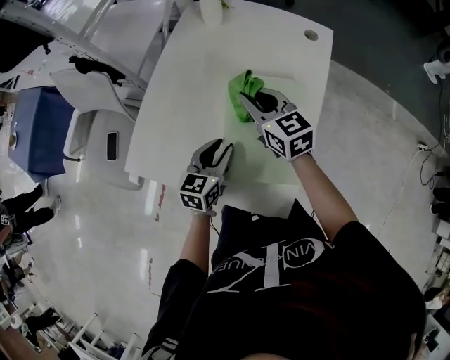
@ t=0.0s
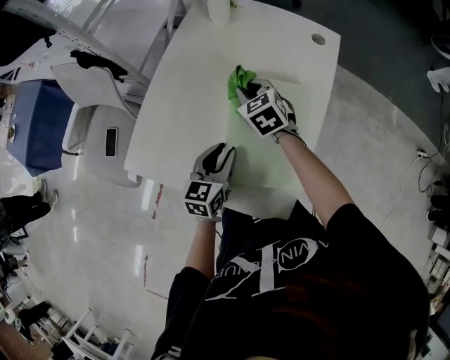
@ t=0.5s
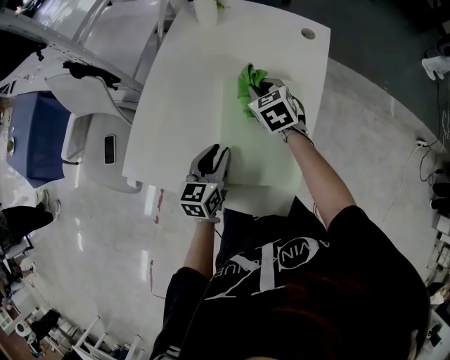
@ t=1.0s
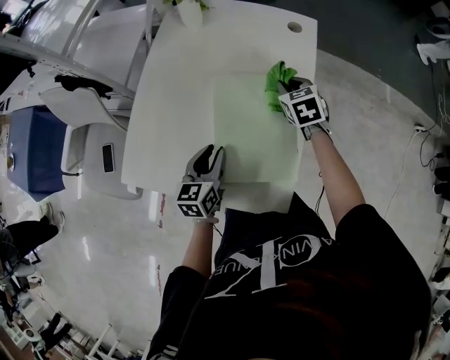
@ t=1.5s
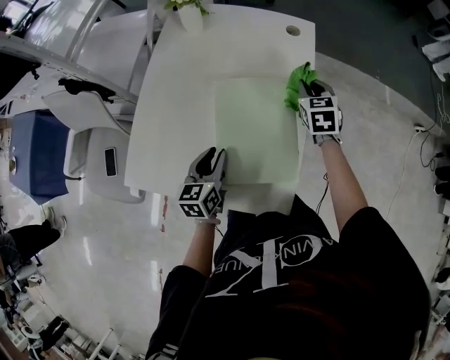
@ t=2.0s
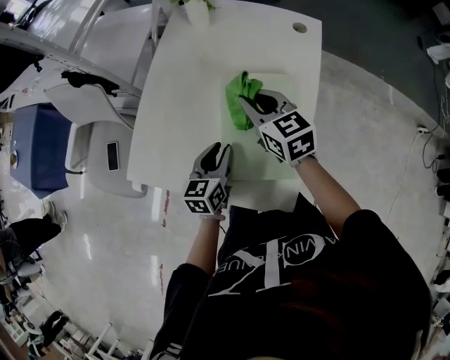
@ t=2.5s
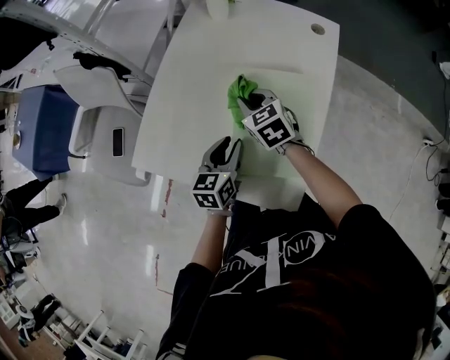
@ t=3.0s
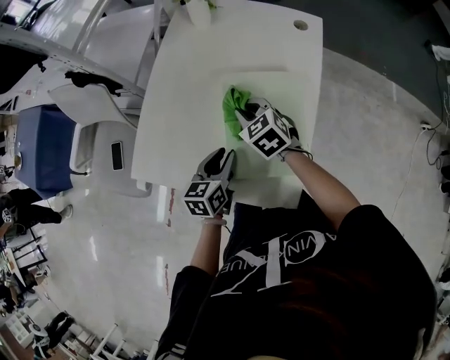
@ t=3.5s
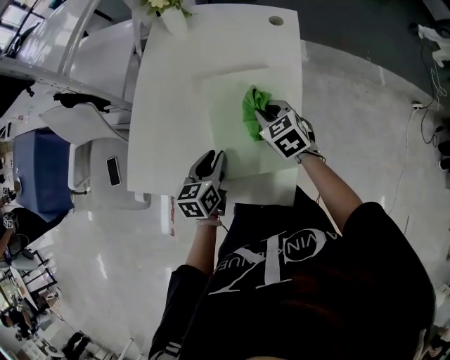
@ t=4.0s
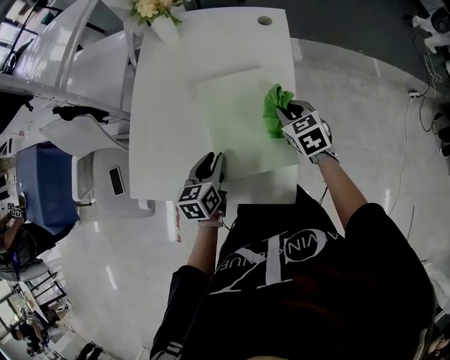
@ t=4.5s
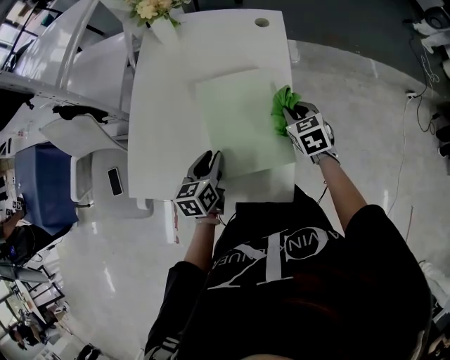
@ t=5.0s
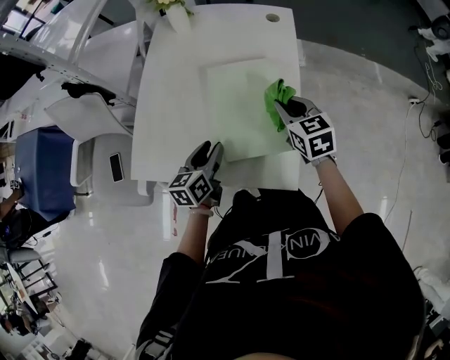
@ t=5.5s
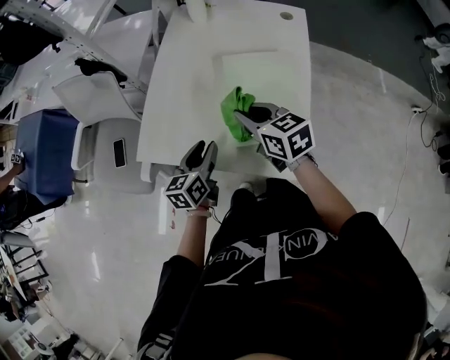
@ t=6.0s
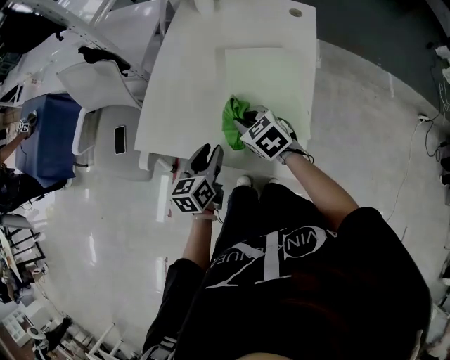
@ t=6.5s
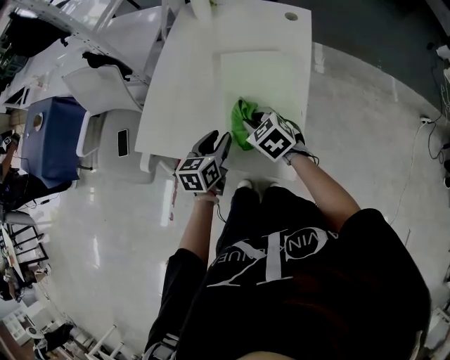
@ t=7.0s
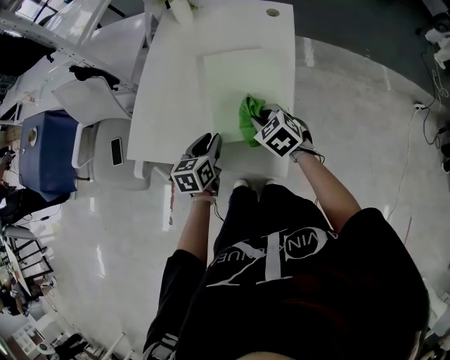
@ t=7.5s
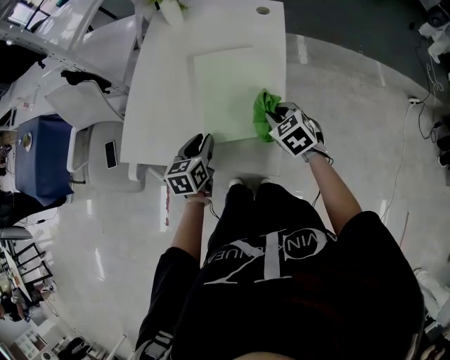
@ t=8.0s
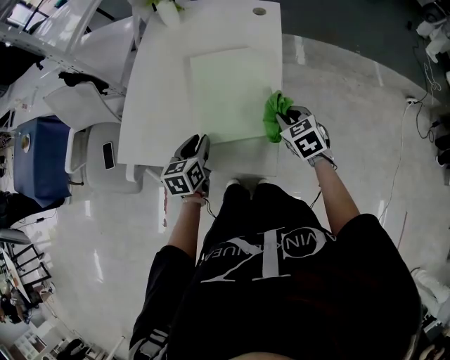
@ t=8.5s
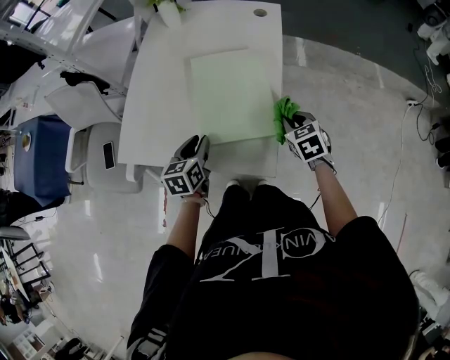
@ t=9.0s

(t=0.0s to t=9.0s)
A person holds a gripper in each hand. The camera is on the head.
t=0.0s - t=2.0s: The right gripper travels to the right by about 20 cm, and changes its angle by some 40 degrees.
t=2.0s - t=4.5s: The right gripper is displaced backward by about 10 cm, and moves approximately 25 cm to the left and comes back.
t=4.5s - t=7.0s: The left gripper moves backward, about 5 cm, while the right gripper heads to the left and backward, covering approximately 20 cm, and changes its angle by about 30 degrees.
t=7.0s - t=9.0s: The right gripper is displaced to the right by some 20 cm, and turns by roughly 30 degrees.

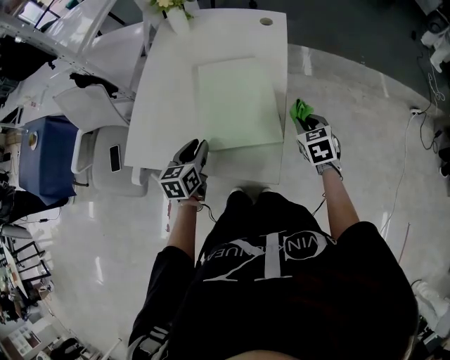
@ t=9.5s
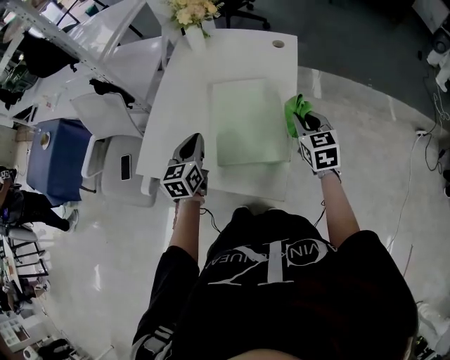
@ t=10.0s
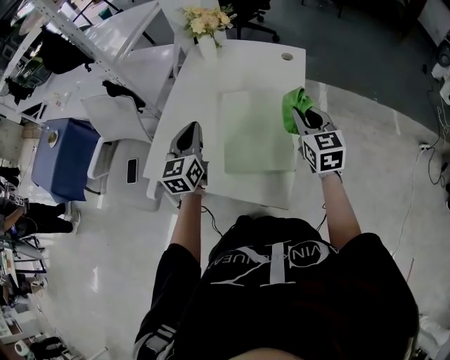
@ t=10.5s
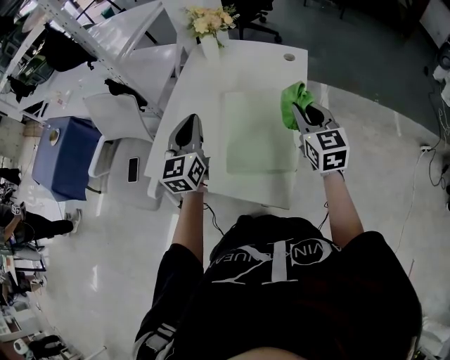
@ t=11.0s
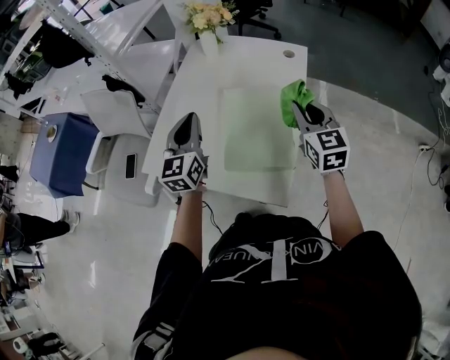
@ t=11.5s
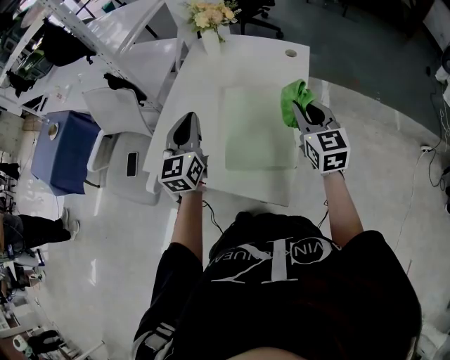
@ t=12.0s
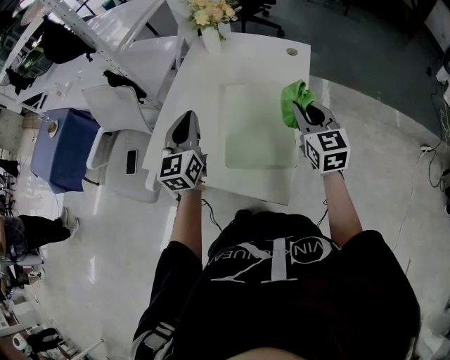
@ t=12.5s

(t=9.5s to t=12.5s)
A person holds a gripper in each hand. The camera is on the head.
t=9.5s - t=11.0s: The left gripper moves upward and forward, approximately 20 cm, swivels some 40 degrees, and closes; the right gripper heads upward and to the left, covering approximately 20 cm, and angles its fingers upward, by approximately 30 degrees.
t=11.0s - t=12.5s: Neither gripper changes place.

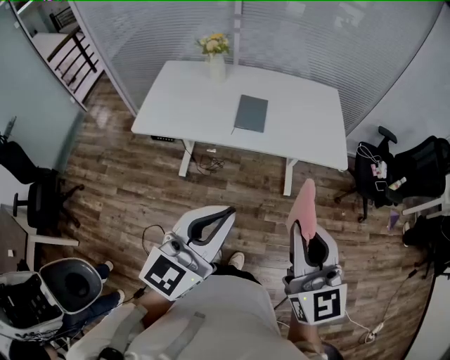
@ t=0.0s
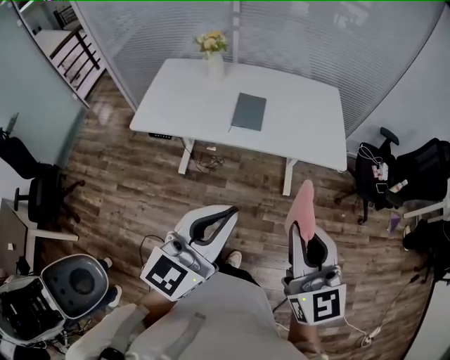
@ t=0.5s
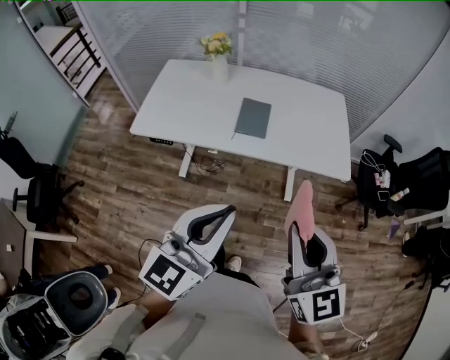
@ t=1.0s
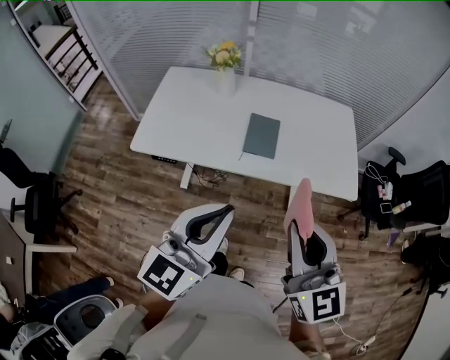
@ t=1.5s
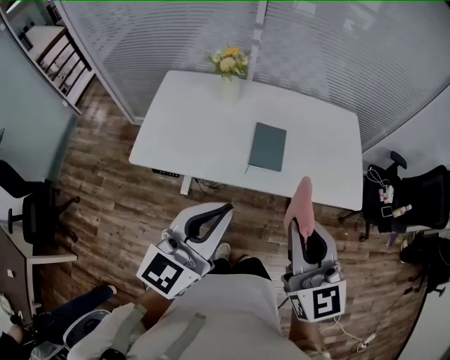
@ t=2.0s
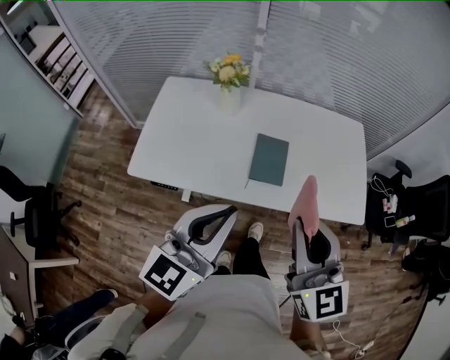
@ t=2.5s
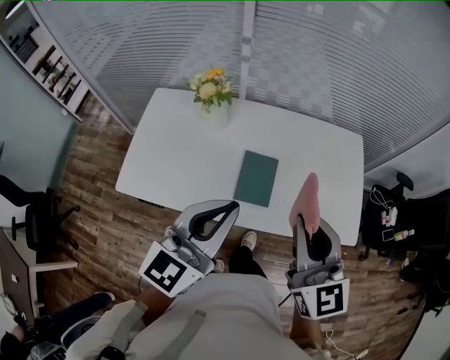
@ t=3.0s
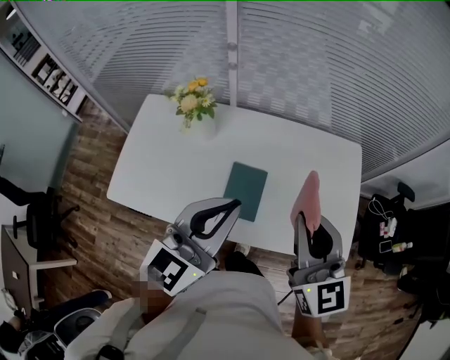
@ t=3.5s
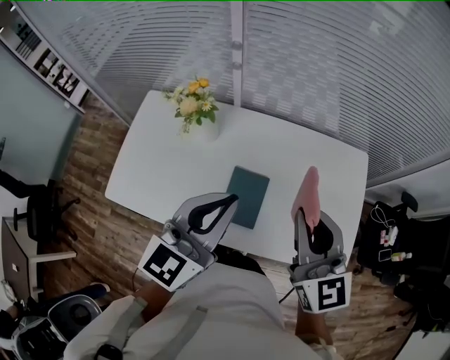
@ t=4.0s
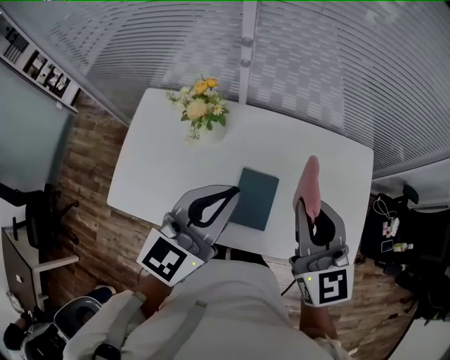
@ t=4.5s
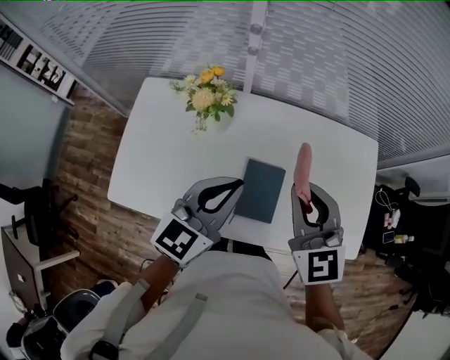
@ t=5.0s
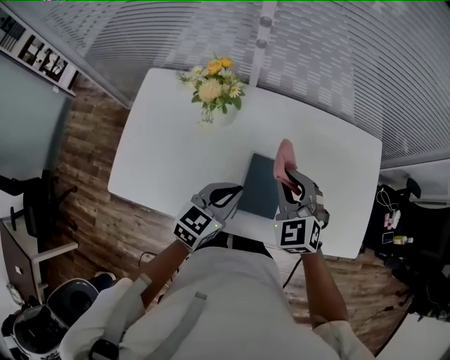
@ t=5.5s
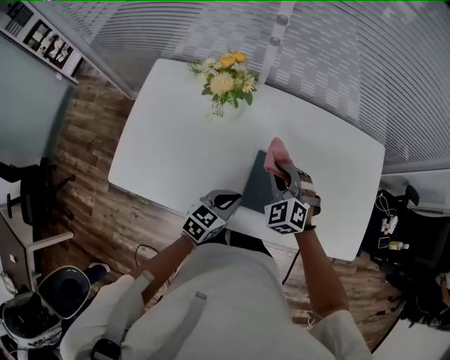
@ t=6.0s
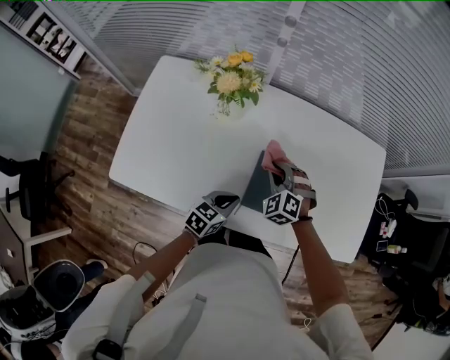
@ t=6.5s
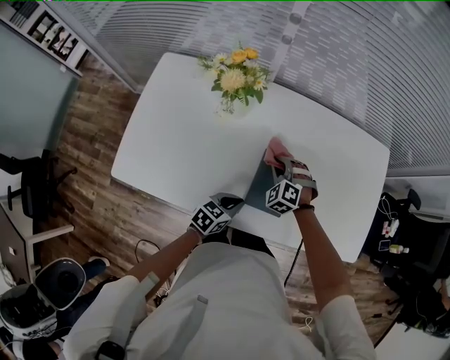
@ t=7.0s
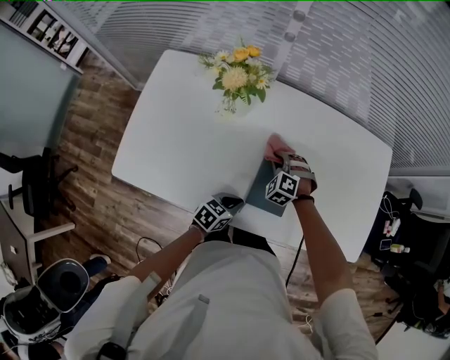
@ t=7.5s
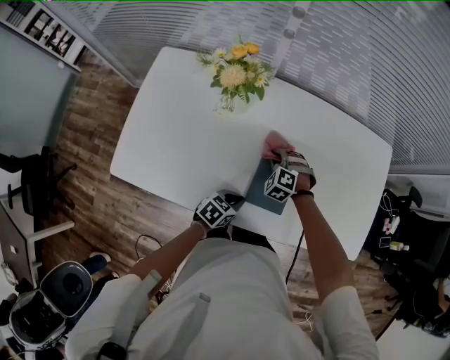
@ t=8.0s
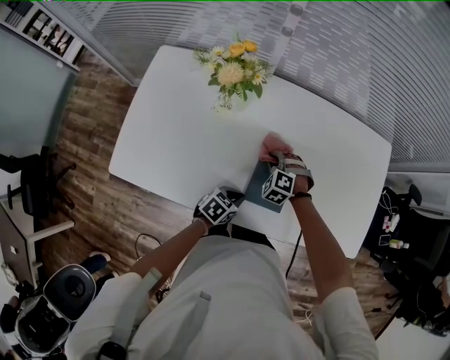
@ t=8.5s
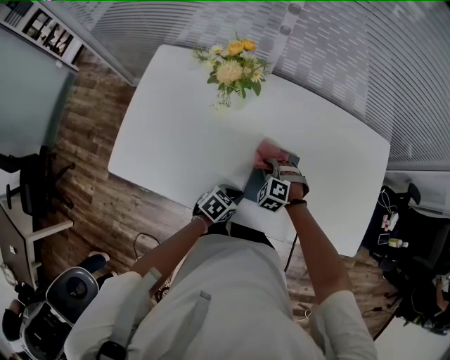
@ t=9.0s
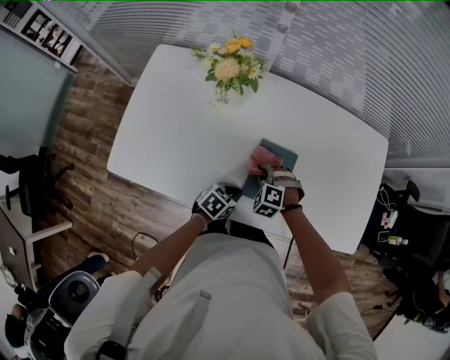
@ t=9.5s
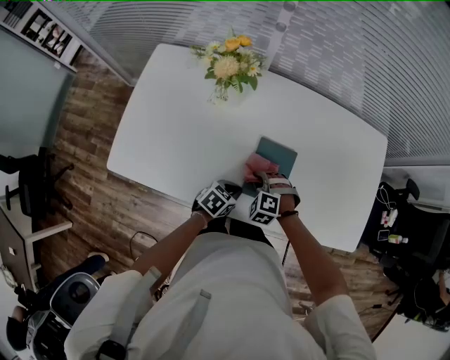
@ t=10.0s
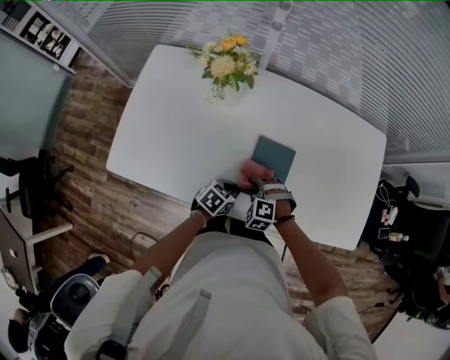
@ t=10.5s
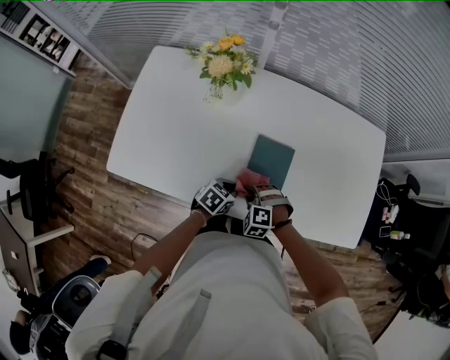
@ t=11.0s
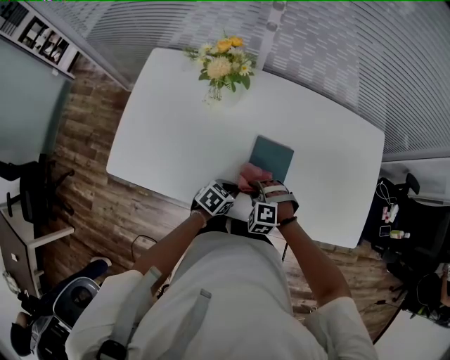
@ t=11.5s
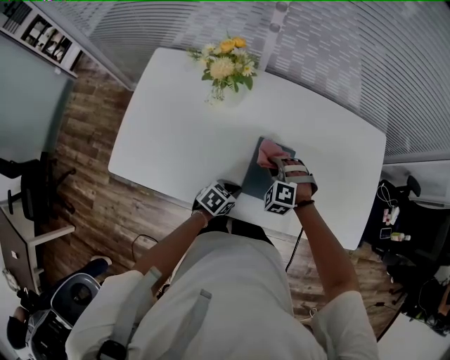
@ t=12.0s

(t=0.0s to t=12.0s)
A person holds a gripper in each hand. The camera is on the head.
t=0.0s - t=2.0s: Both grippers travel together forward and to the left, approximately 25 cm.
t=2.0s - t=4.0s: Both grippers travel together forward, approximately 35 cm.
t=4.0s - t=6.0s: The left gripper moves downward, some 35 cm, and changes its angle by some 40 degrees; the right gripper shifts about 30 cm downward and to the left, and tilts its fingers some 30 degrees downward.
t=6.0s - t=8.0s: The right gripper is displaced downward by roughly 15 cm, and swivels approximately 20 degrees, while the left gripper is displaced downward by roughly 10 cm.
t=8.0s - t=10.0s: The right gripper heads backward, covering approximately 10 cm.
t=10.0s - t=12.0s: The right gripper moves forward and upward, some 10 cm.

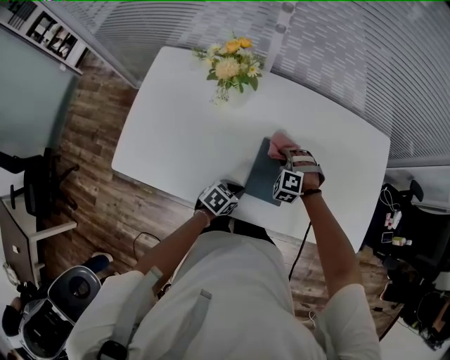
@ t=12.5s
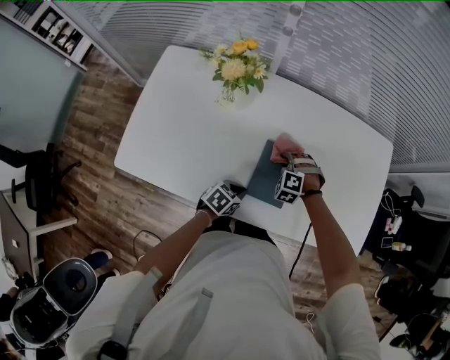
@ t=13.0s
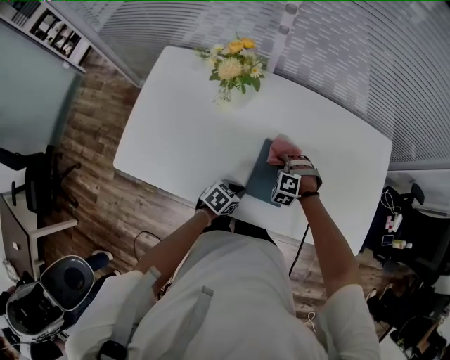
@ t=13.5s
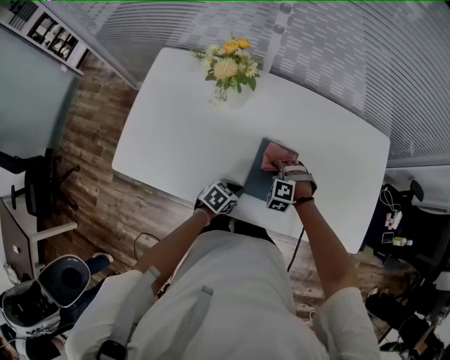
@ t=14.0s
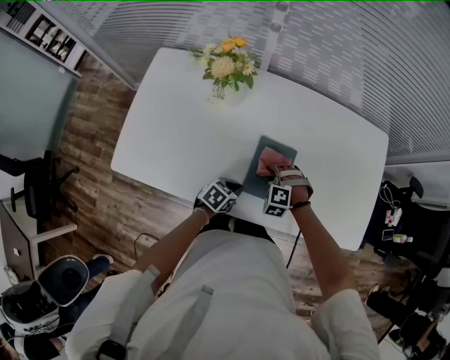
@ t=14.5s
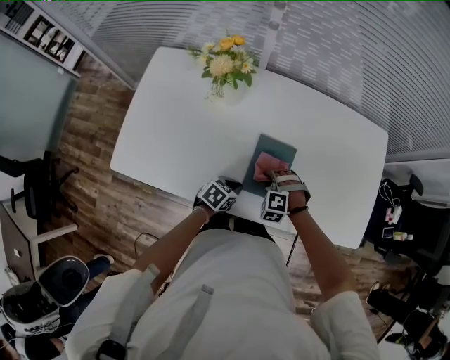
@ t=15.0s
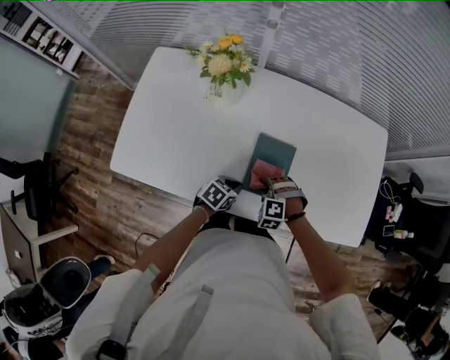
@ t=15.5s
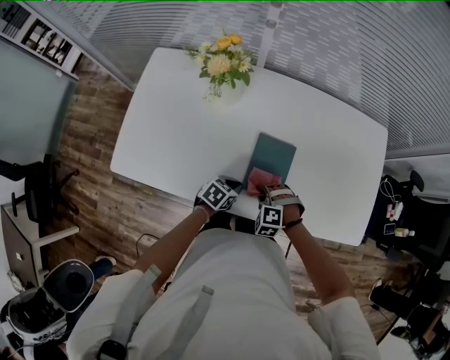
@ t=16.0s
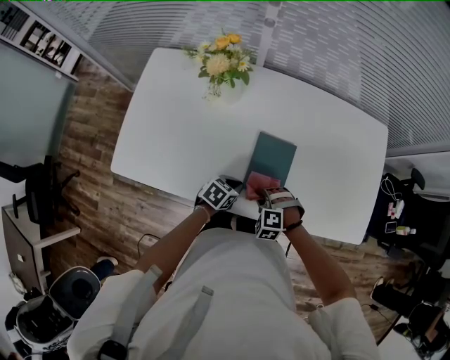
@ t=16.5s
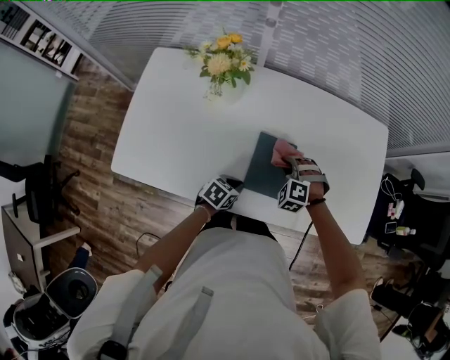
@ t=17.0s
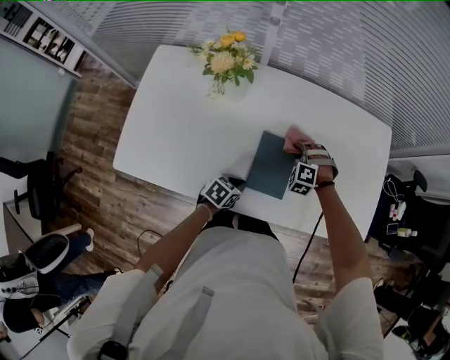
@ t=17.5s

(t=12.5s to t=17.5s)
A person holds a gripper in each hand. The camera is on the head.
t=12.5s - t=15.0s: The right gripper heads backward, covering about 10 cm.
t=15.0s - t=17.5s: The right gripper shifts approximately 15 cm forward.
